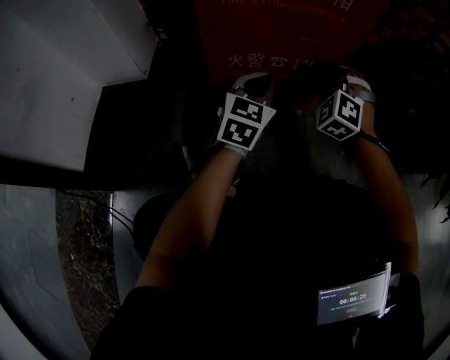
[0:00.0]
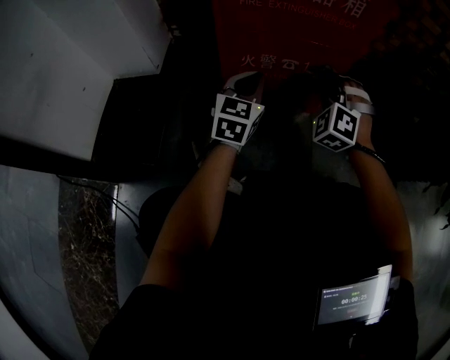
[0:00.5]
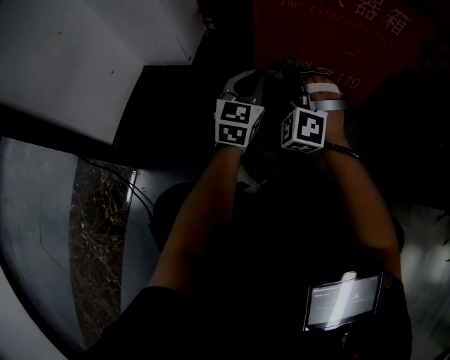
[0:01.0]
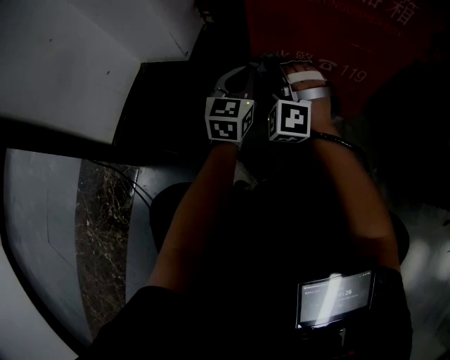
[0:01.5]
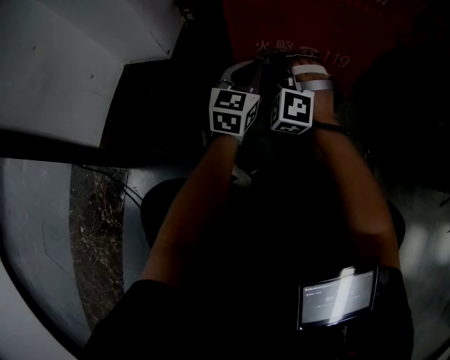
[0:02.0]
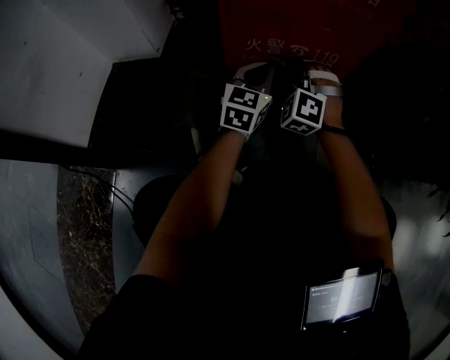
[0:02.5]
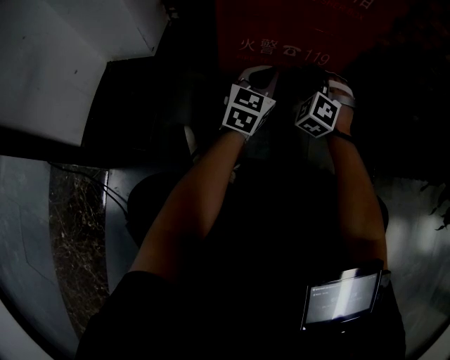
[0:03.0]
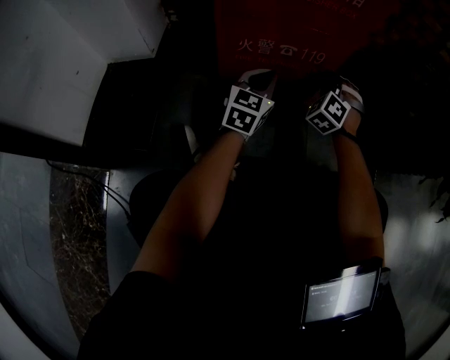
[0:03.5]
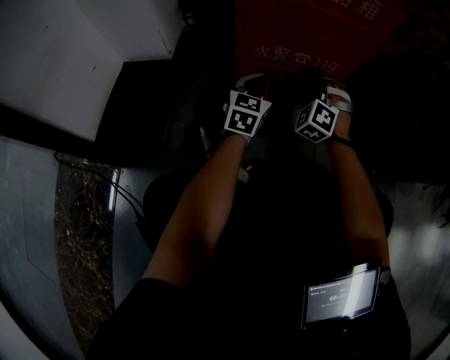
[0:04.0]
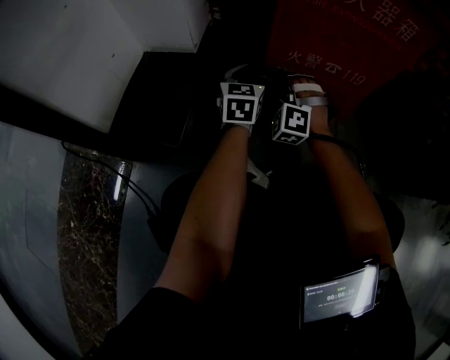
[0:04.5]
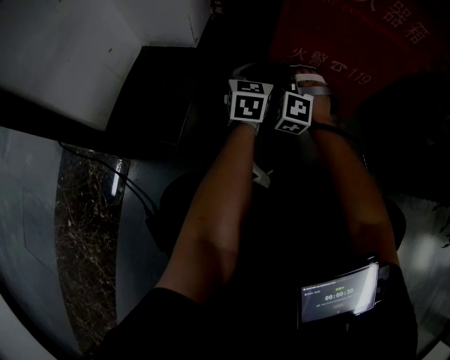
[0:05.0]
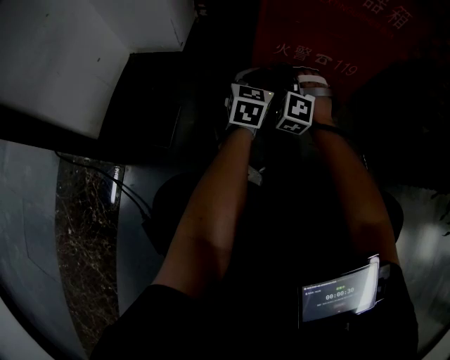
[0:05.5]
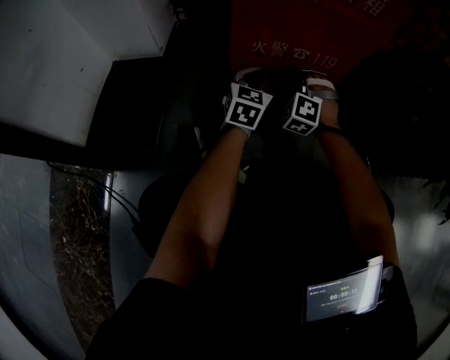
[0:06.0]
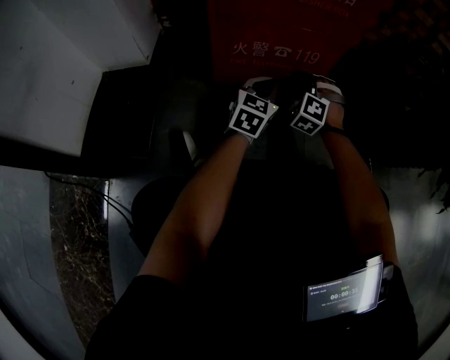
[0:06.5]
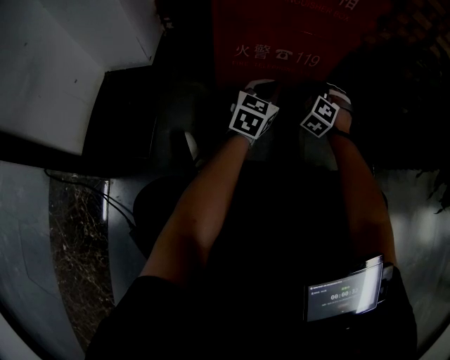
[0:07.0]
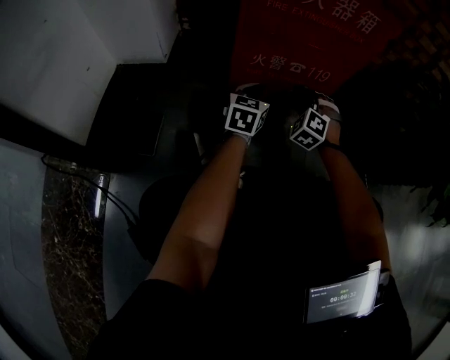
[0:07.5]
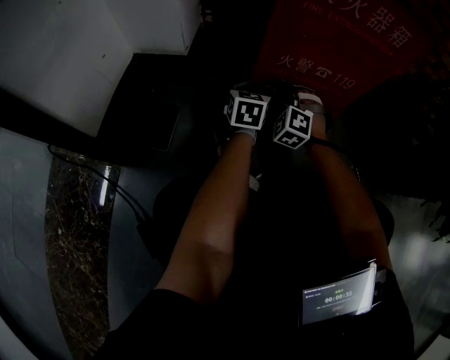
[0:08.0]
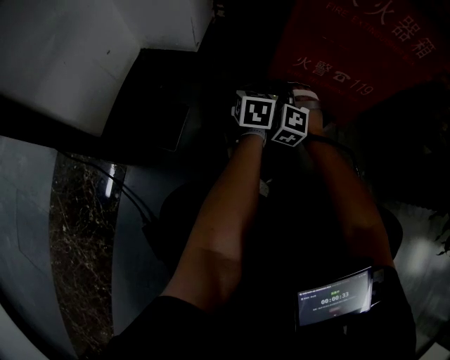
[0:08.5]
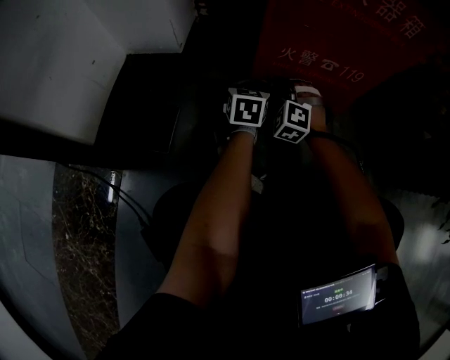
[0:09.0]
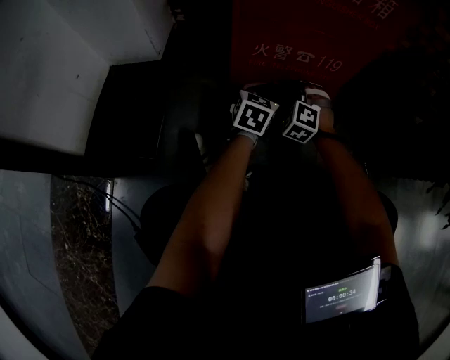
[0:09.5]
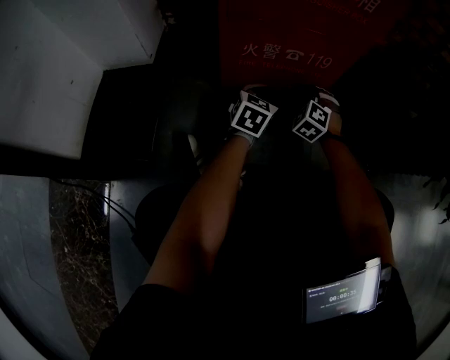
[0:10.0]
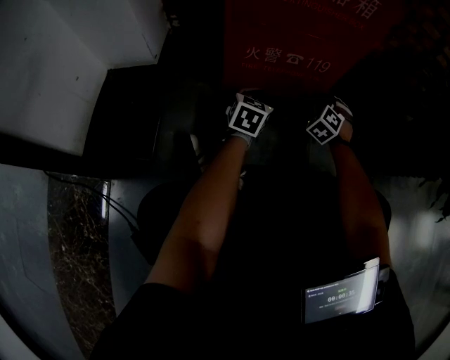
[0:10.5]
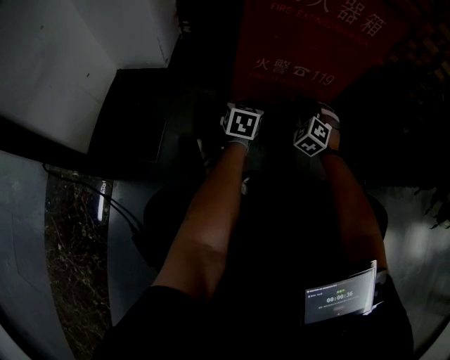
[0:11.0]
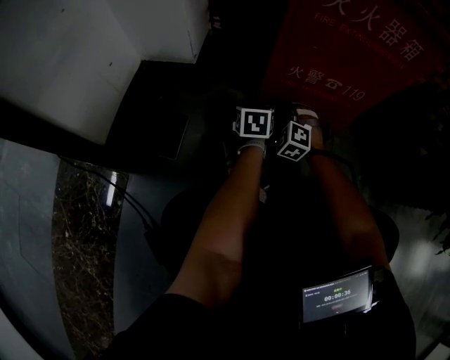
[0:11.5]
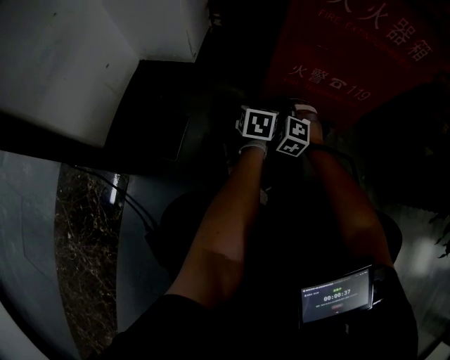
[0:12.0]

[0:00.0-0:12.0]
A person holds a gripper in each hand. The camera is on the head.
0:06.0 to 0:08.0: The left gripper changes place by roughly 10 cm.
0:08.0 to 0:10.0: The left gripper moves approximately 15 cm, and changes its angle by approximately 20 degrees.
0:10.0 to 0:12.0: The left gripper ends up roughly 15 cm from where it was, and rotates roughly 30 degrees.

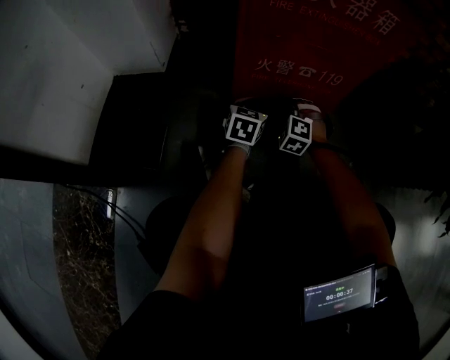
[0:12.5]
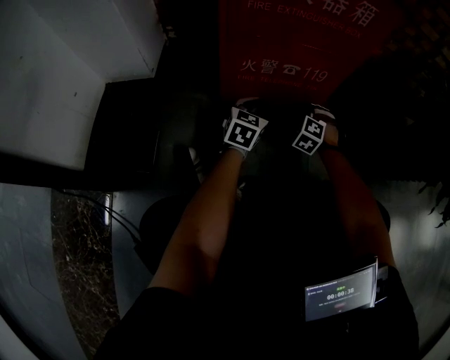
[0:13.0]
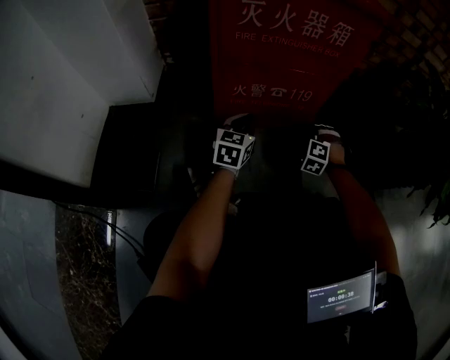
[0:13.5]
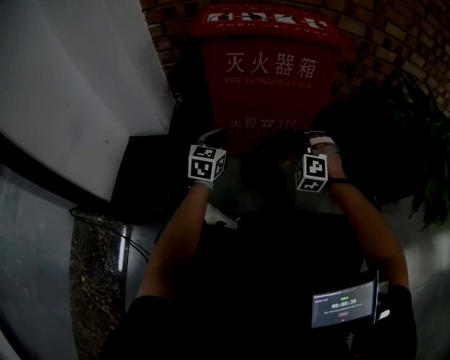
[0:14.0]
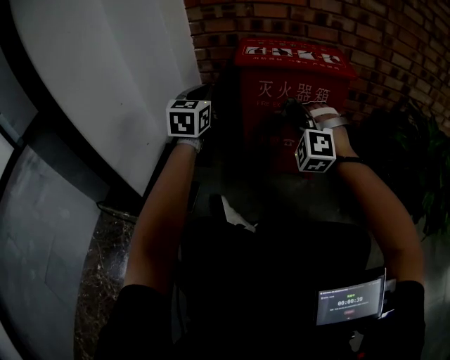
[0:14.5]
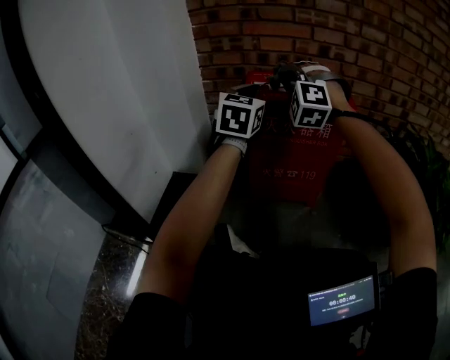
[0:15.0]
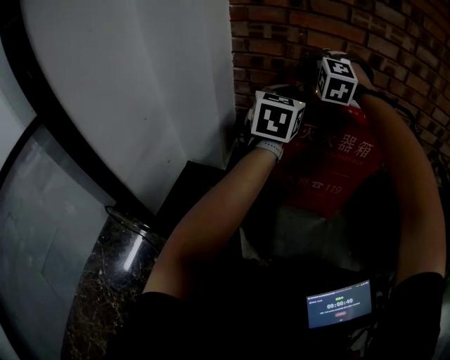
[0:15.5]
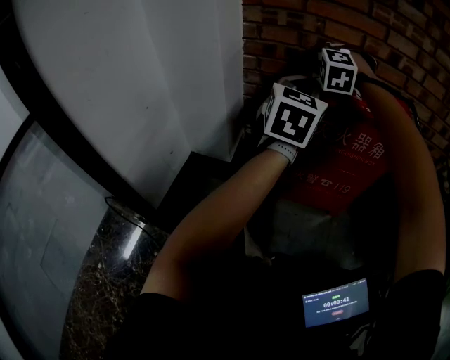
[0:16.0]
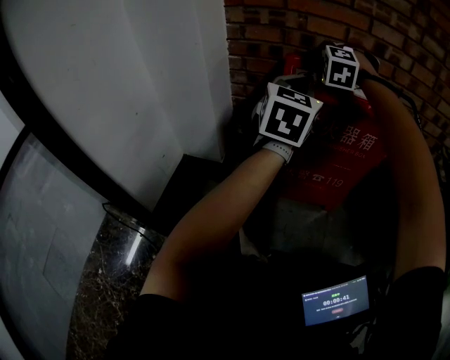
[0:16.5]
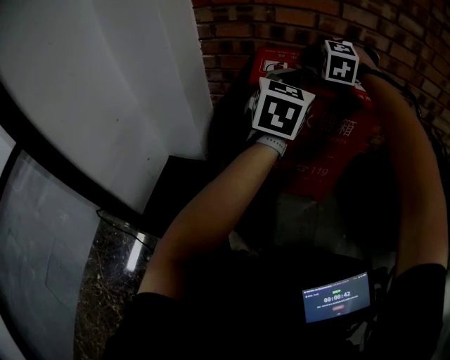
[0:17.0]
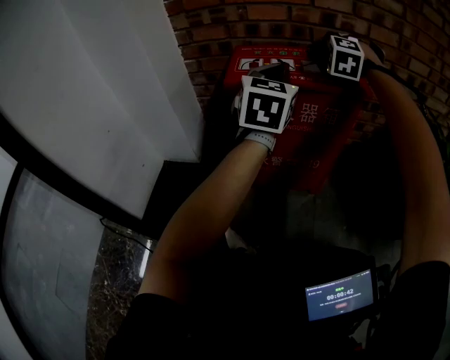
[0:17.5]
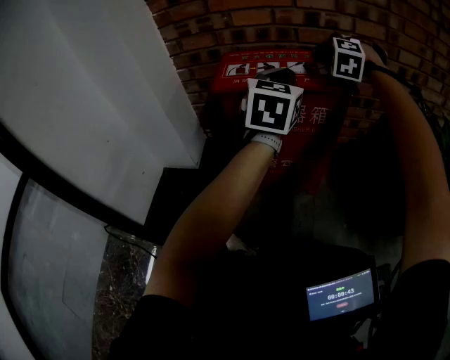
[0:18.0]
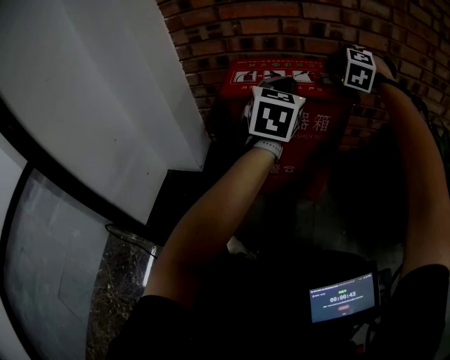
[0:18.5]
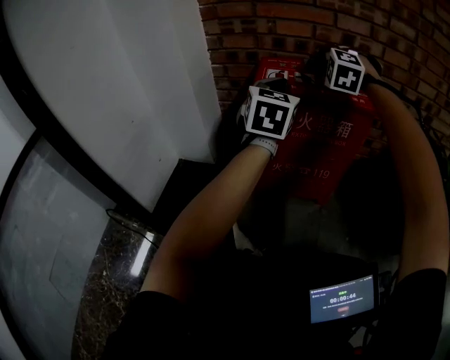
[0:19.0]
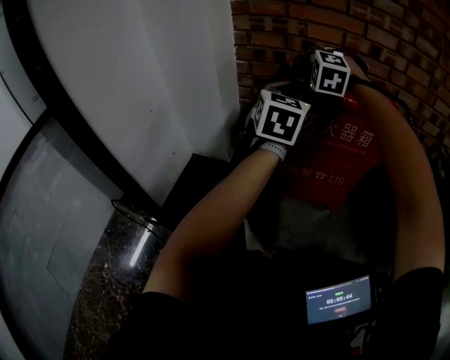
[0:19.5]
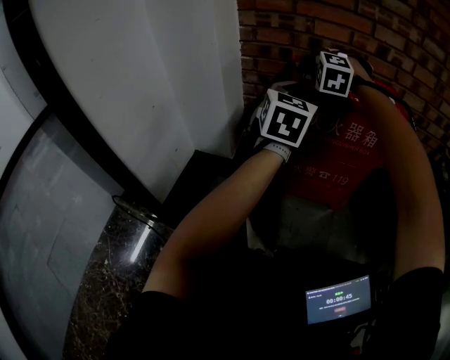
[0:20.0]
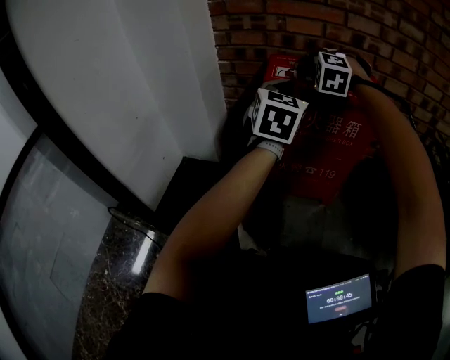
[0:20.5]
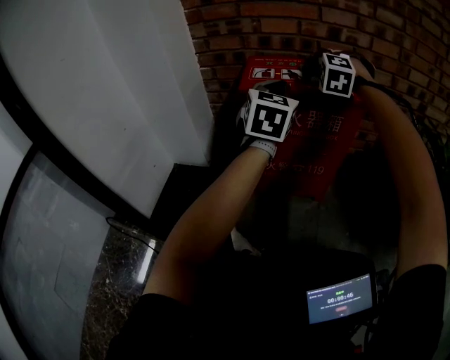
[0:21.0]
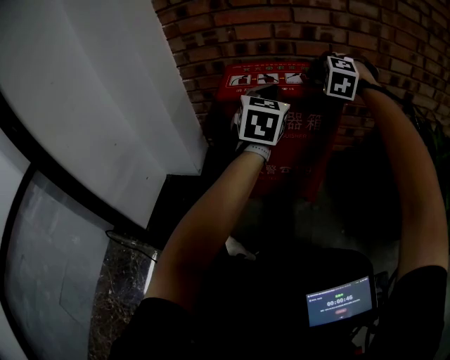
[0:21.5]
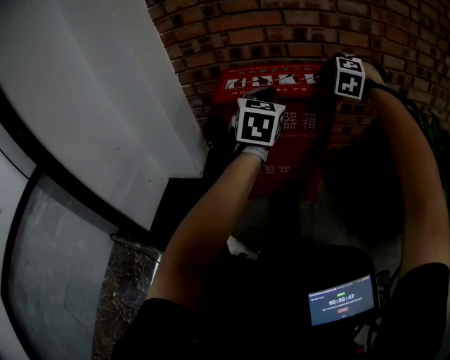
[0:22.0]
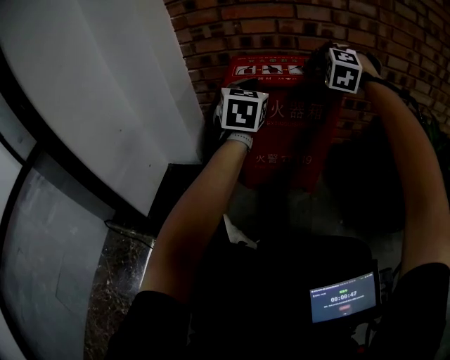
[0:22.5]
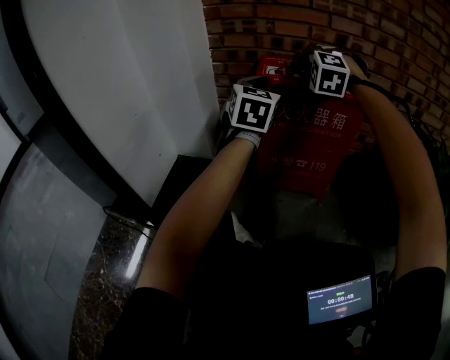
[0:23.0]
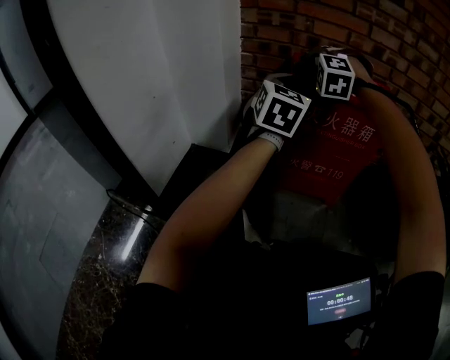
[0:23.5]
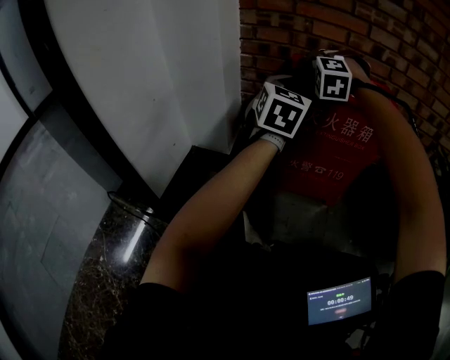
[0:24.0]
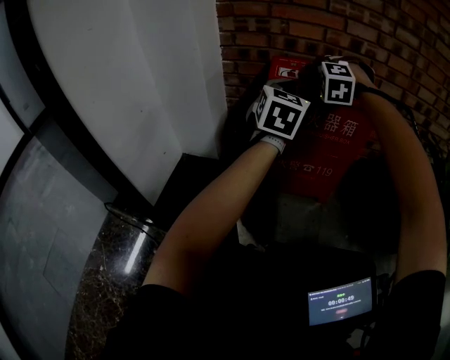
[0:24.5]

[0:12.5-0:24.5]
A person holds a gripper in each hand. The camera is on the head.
0:12.5 to 0:14.5: The left gripper is displaced upward by about 40 cm, and swivels roughly 30 degrees.
0:14.5 to 0:16.5: The left gripper moves roughly 15 cm.
0:16.5 to 0:18.5: The left gripper ends up about 10 cm from where it was.
0:18.5 to 0:20.5: The left gripper moves approximately 10 cm.

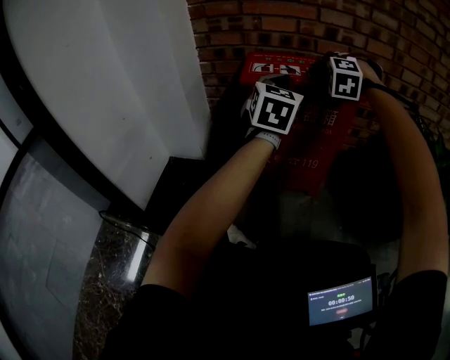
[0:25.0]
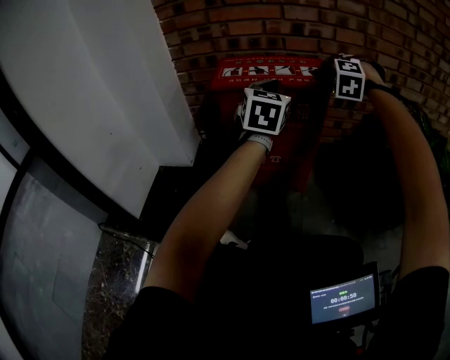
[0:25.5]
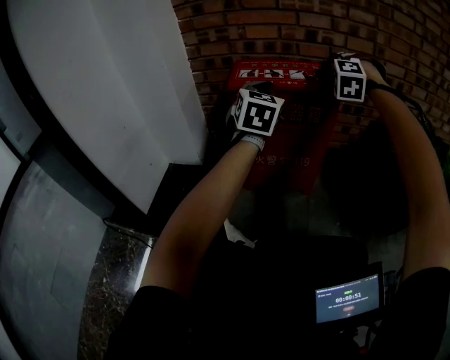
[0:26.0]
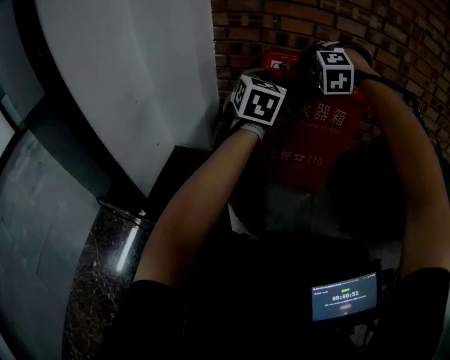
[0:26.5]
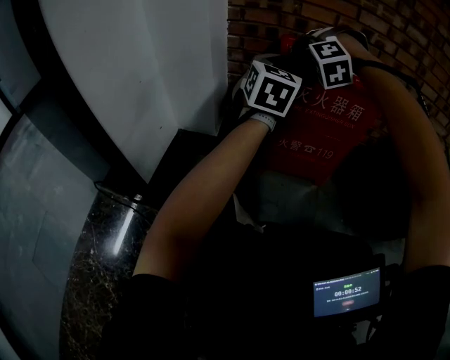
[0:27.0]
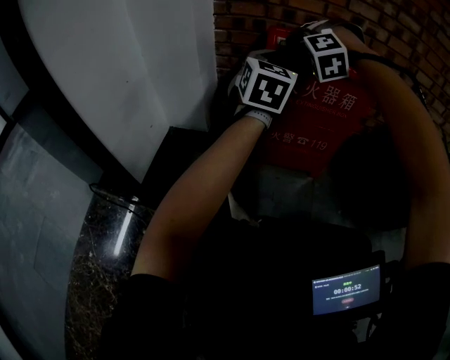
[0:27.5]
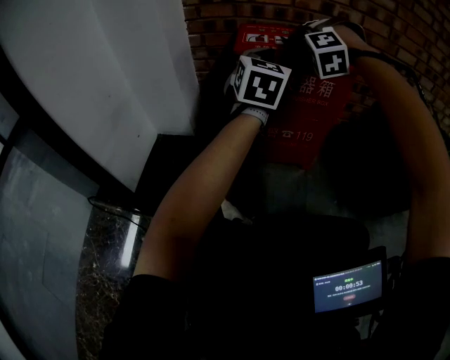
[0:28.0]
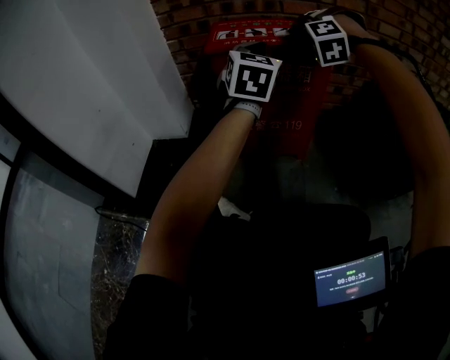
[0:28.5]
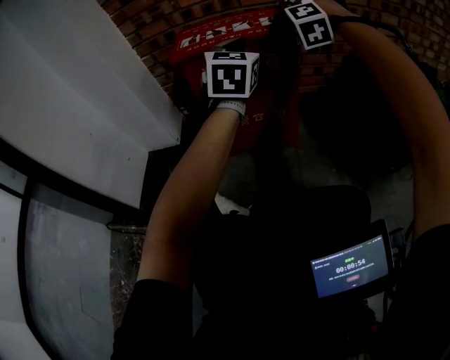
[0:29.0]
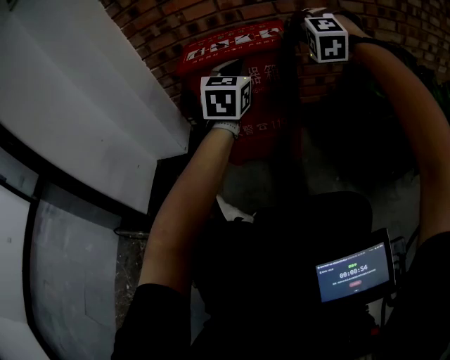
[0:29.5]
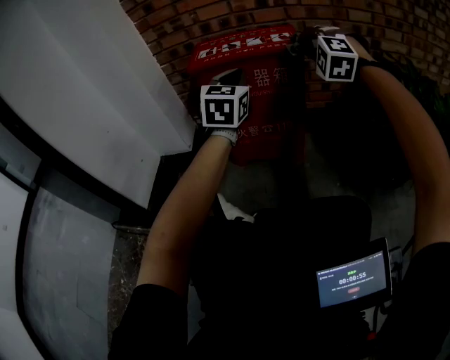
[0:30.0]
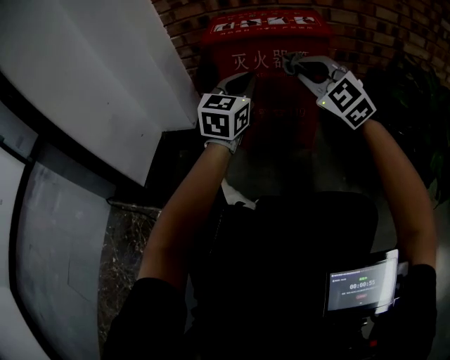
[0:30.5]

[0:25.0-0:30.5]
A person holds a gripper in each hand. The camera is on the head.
0:25.0 to 0:27.0: The left gripper moves some 10 cm.
0:27.0 to 0:28.5: The left gripper moves about 15 cm.
0:28.5 to 0:30.5: The left gripper is displaced downward by roughly 10 cm.
